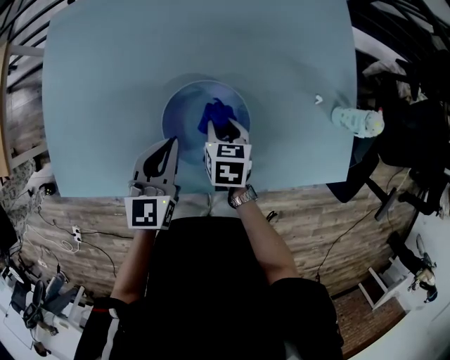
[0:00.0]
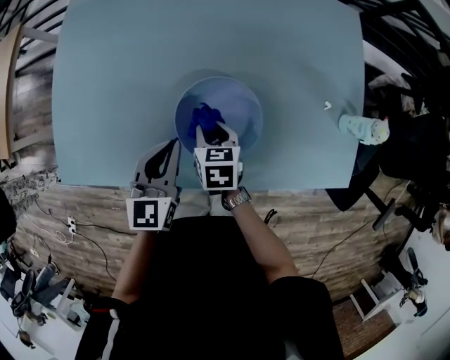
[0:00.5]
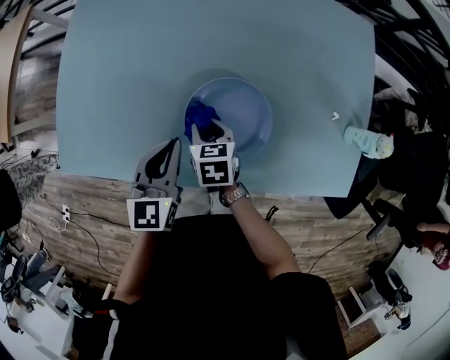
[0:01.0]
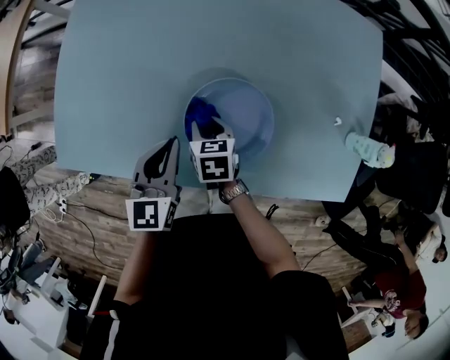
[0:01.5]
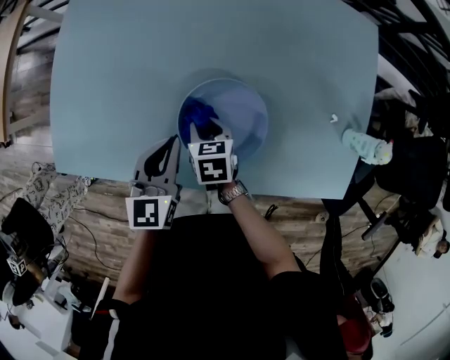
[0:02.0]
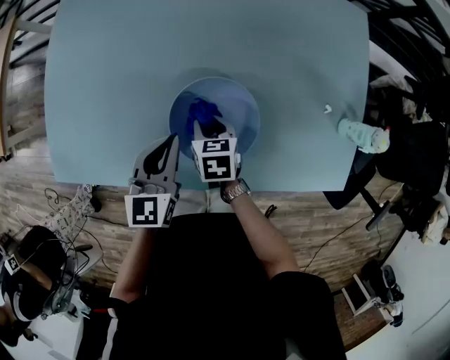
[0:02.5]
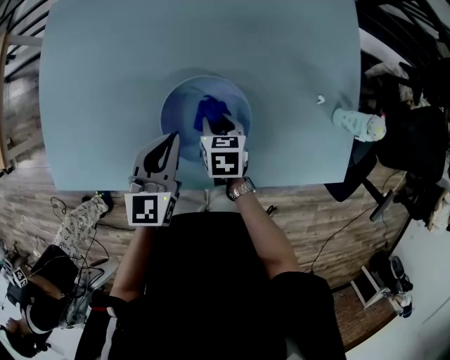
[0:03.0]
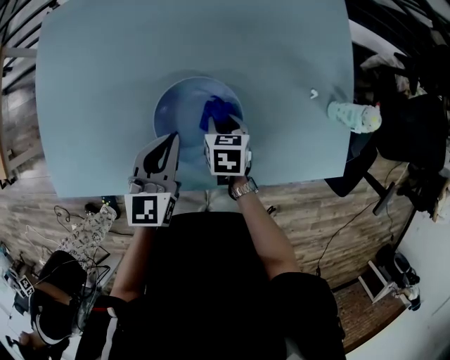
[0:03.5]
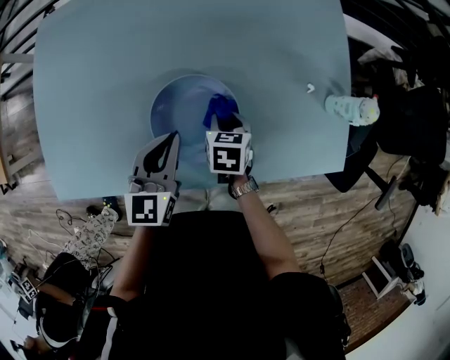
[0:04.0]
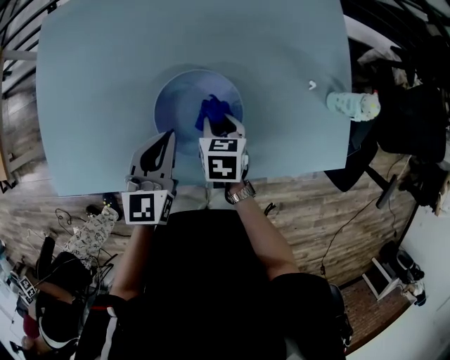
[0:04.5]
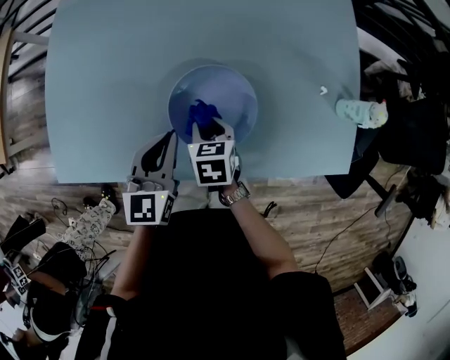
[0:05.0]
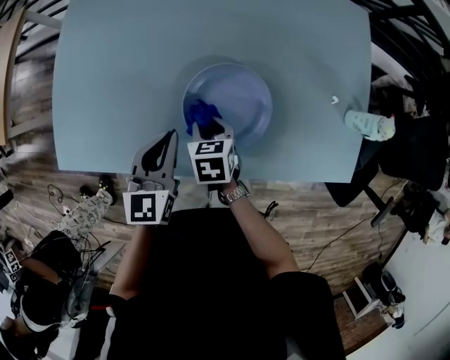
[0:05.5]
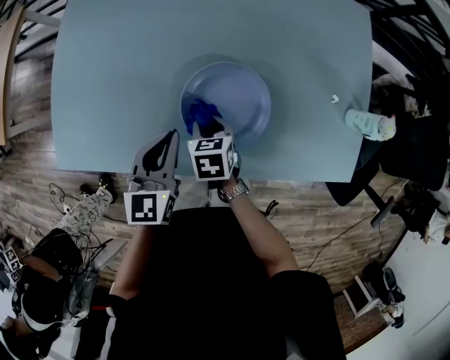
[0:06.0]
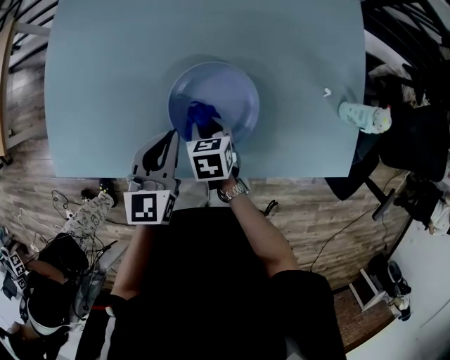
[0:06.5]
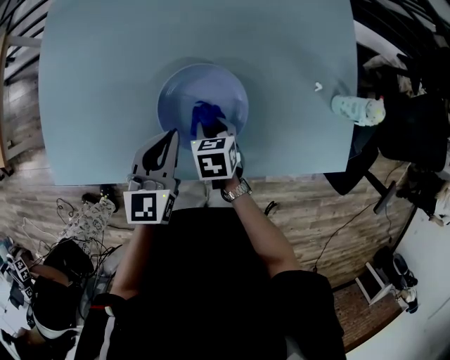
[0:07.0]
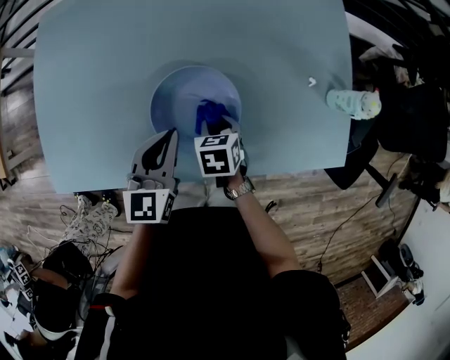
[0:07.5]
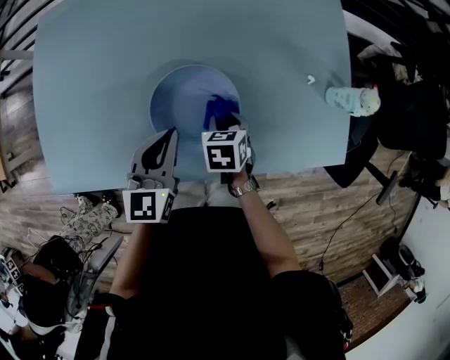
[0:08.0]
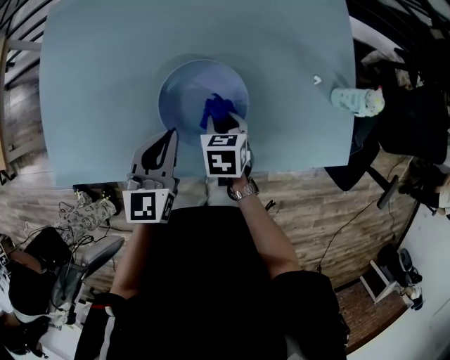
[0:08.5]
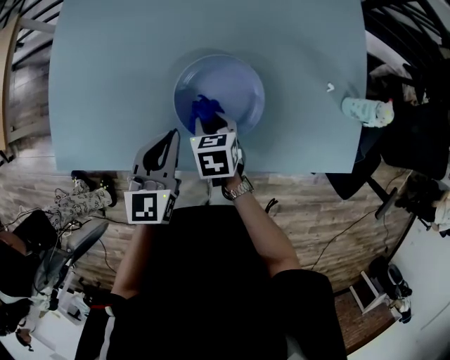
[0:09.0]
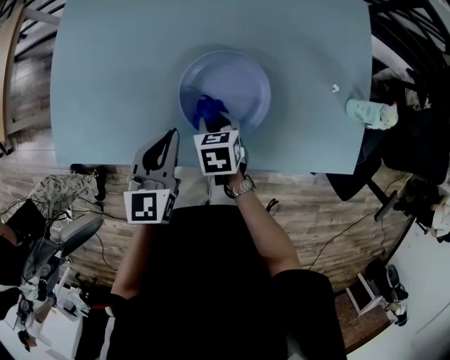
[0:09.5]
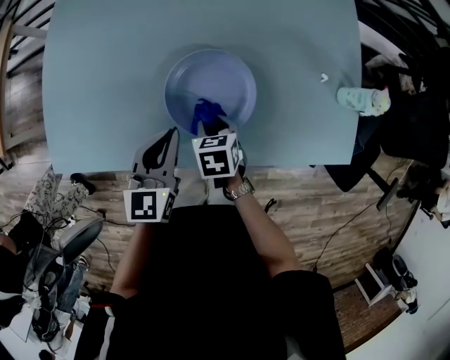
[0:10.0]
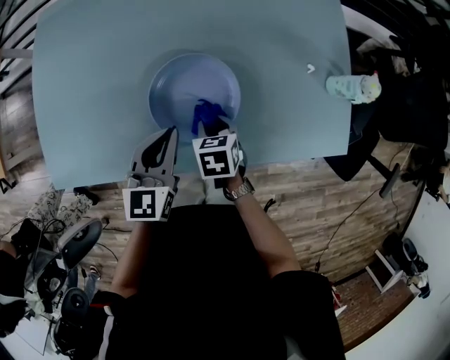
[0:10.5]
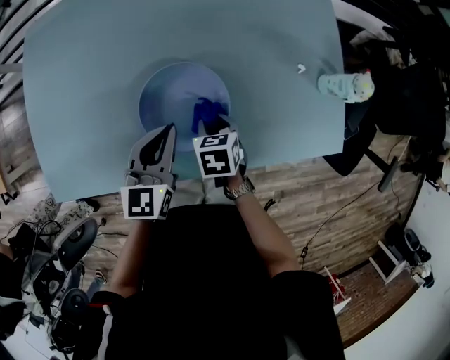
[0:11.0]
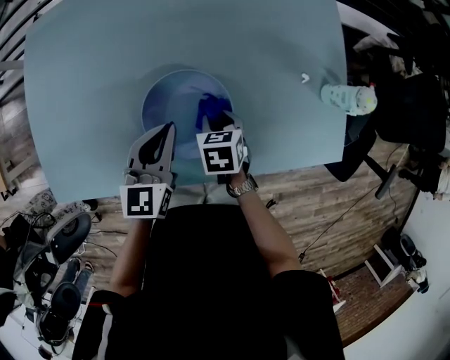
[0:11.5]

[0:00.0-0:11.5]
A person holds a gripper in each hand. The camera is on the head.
0:00.0 to 0:02.0: The left gripper travels to the left by some 5 cm. The right gripper goes some 10 cm to the left.
0:02.0 to 0:04.0: The left gripper moves to the right, about 10 cm, while the right gripper travels to the right by some 15 cm, and swivels some 20 degrees.
0:04.0 to 0:06.0: The left gripper goes approximately 10 cm to the left, while the right gripper shifts roughly 15 cm to the left.
0:06.0 to 0:07.5: Both grippers move to the right, about 10 cm.
0:07.5 to 0:09.5: The left gripper goes approximately 10 cm to the left and backward; the right gripper travels to the left by roughly 10 cm.
0:09.5 to 0:11.5: The right gripper moves to the right, roughly 10 cm; the left gripper is displaced to the right and forward by roughly 15 cm.

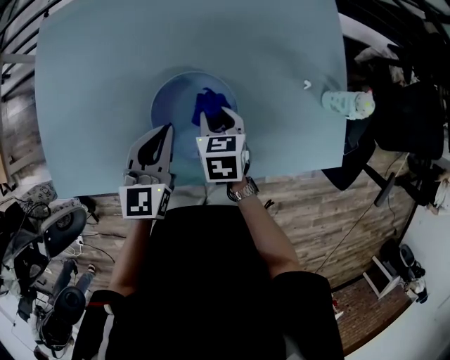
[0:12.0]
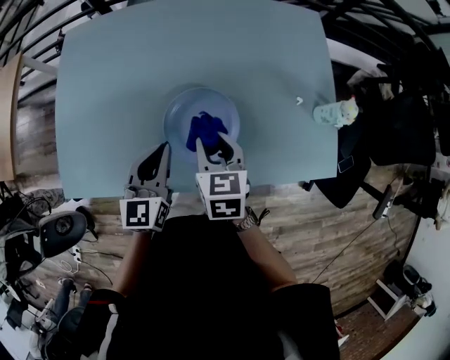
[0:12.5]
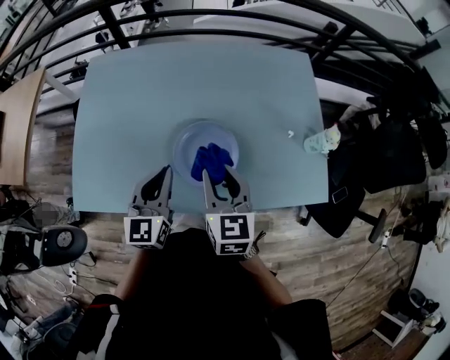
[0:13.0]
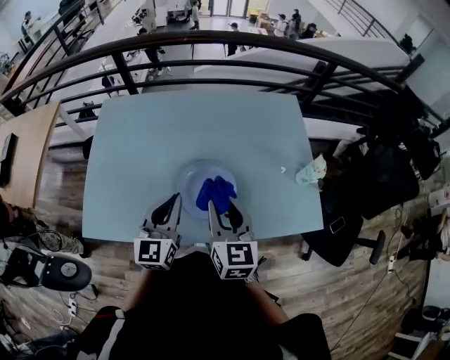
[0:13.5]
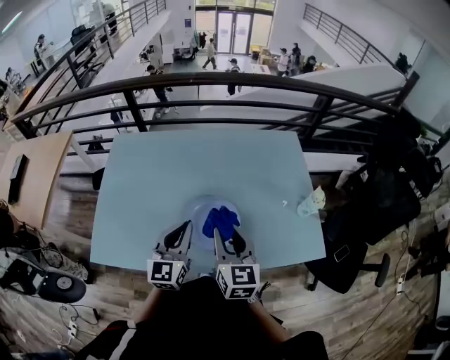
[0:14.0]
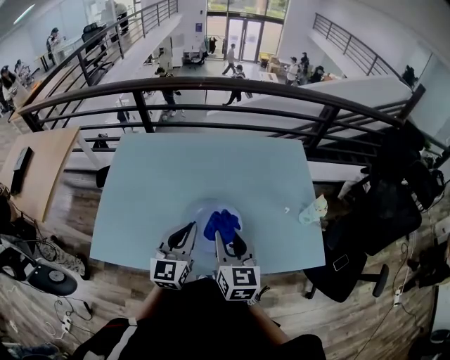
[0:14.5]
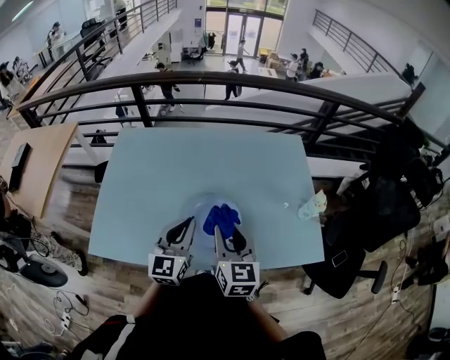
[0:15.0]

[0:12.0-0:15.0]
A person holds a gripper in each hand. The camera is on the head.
0:12.0 to 0:13.5: The right gripper travels upward and backward by about 30 cm, and angles its fingers upward, by some 40 degrees, while the left gripper travels upward and backward by approximately 20 cm.
0:13.5 to 0:15.0: There are only small adjustments of the grippers.

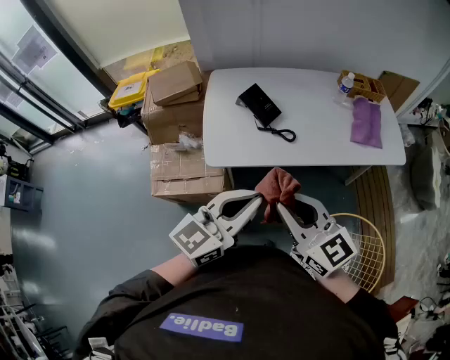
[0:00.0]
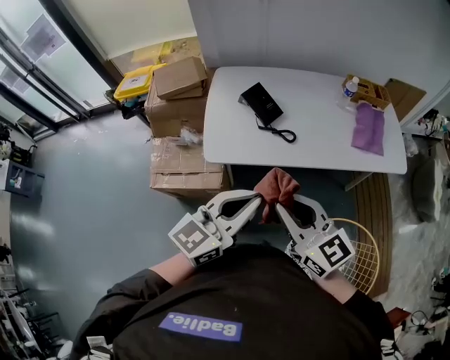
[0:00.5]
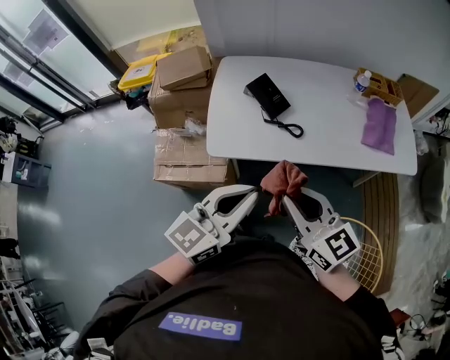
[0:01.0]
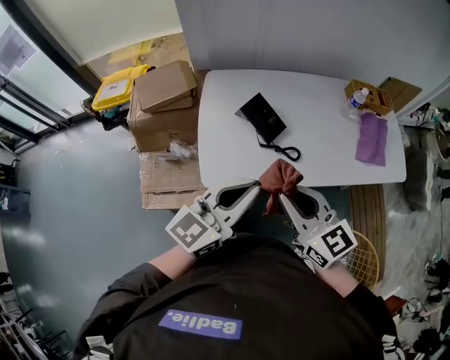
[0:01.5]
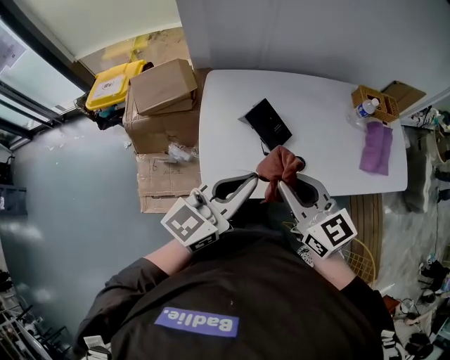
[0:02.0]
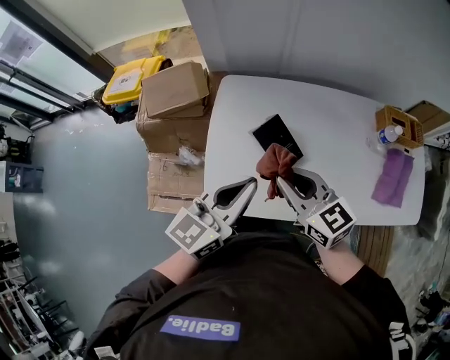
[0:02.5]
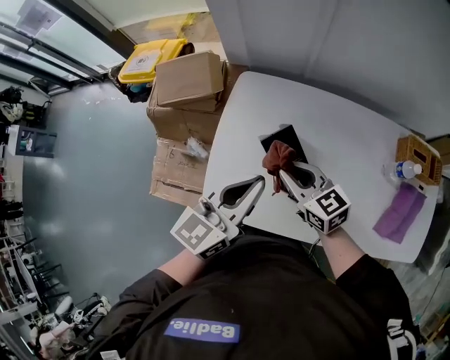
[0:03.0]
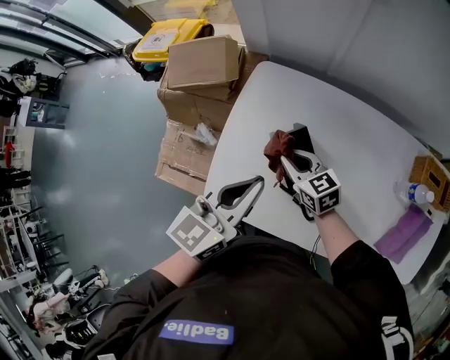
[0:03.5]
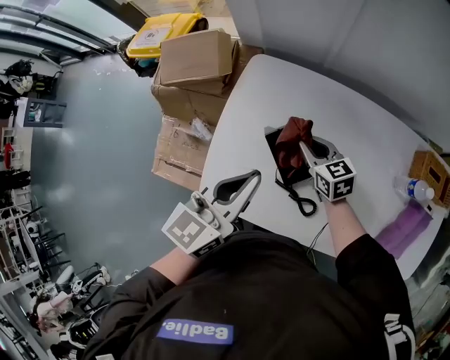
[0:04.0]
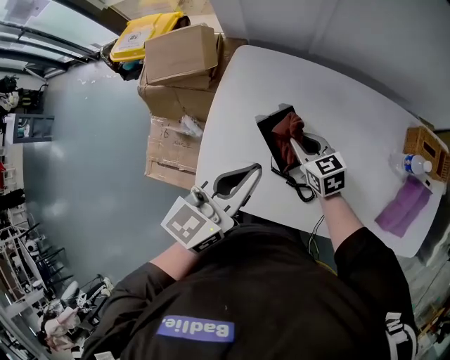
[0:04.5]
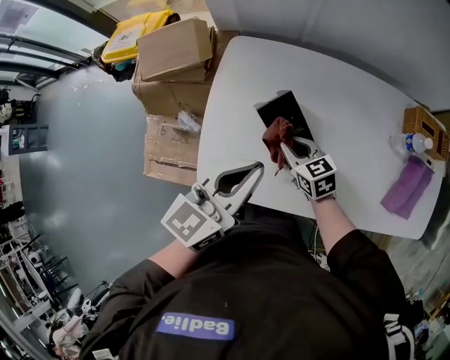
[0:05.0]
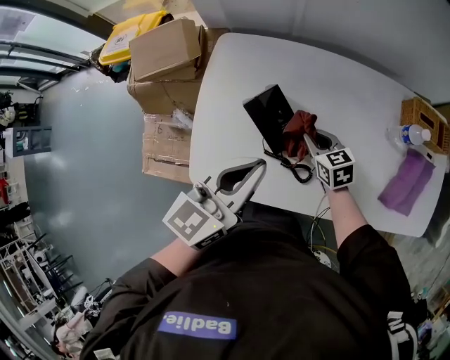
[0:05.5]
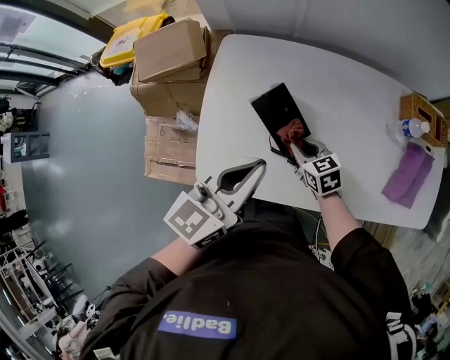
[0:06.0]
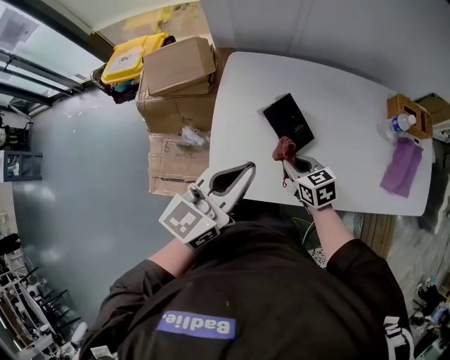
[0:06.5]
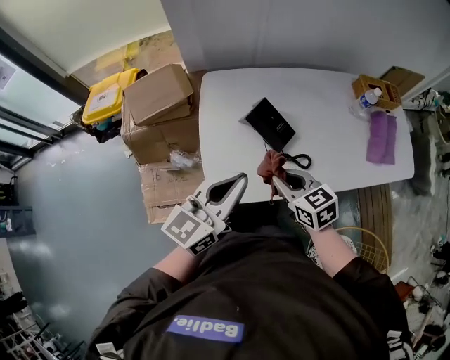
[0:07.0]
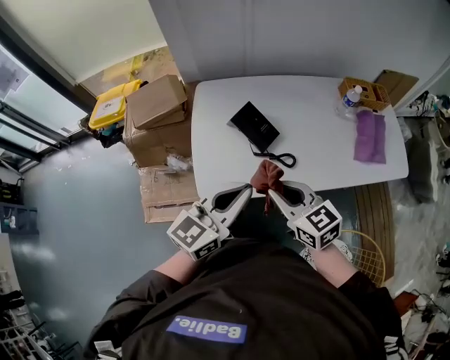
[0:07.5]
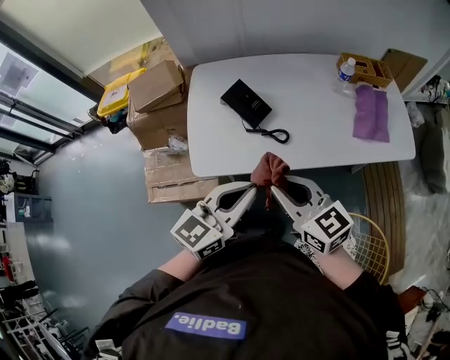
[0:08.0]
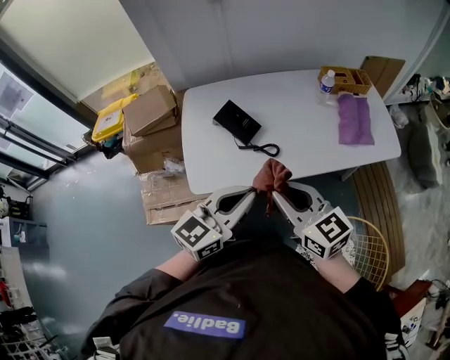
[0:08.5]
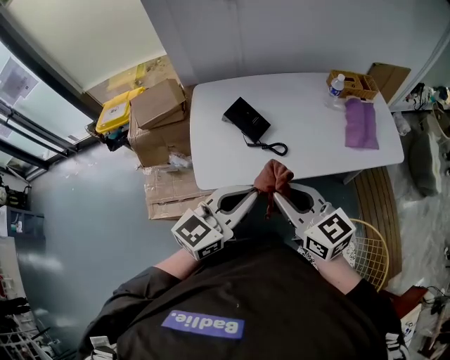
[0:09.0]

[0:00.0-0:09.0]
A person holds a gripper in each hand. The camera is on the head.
0:00.0 to 0:02.0: Both grippers move forward, roughly 25 cm.
0:02.0 to 0:04.5: The right gripper goes some 25 cm downward, and changes its angle by roughly 30 degrees; the left gripper moves roughly 15 cm, and swivels about 30 degrees.
0:04.5 to 0:07.0: The left gripper shifts approximately 15 cm backward and to the left, and changes its angle by roughly 20 degrees. The right gripper heads backward and upward, covering roughly 20 cm.
0:07.0 to 0:09.0: The right gripper moves backward, upward and to the right, roughly 25 cm, and rotates about 20 degrees, while the left gripper moves backward and to the right, some 20 cm.

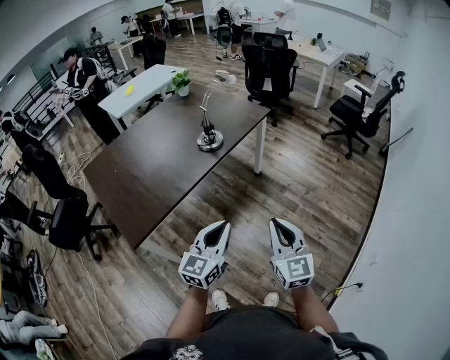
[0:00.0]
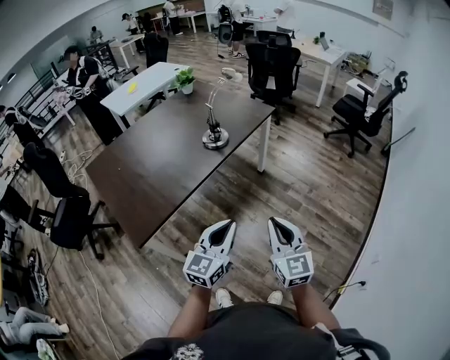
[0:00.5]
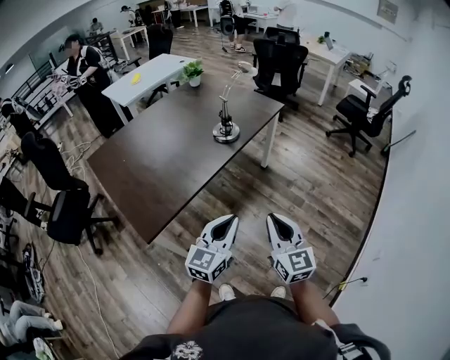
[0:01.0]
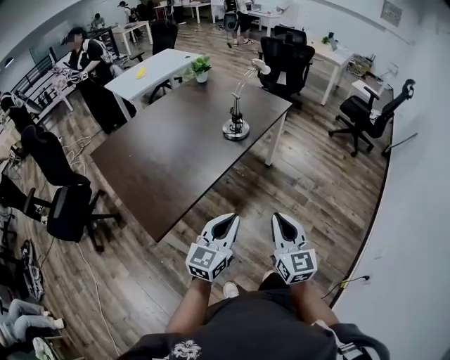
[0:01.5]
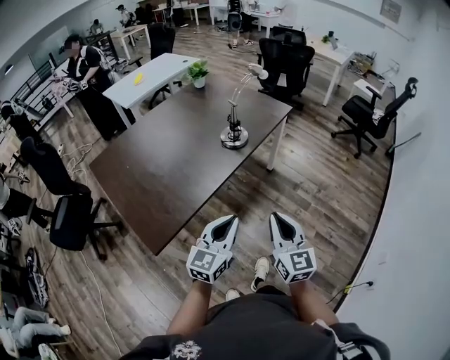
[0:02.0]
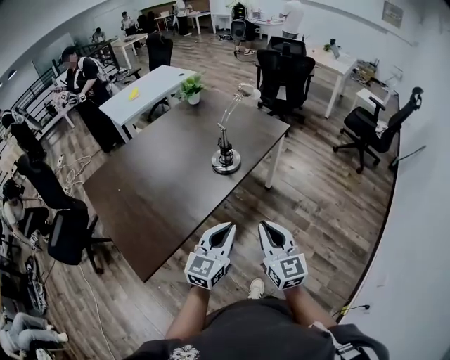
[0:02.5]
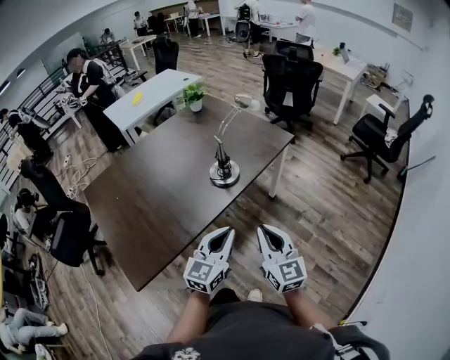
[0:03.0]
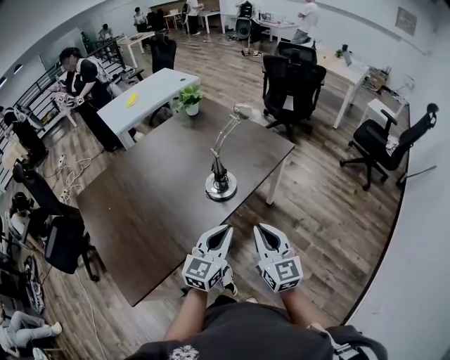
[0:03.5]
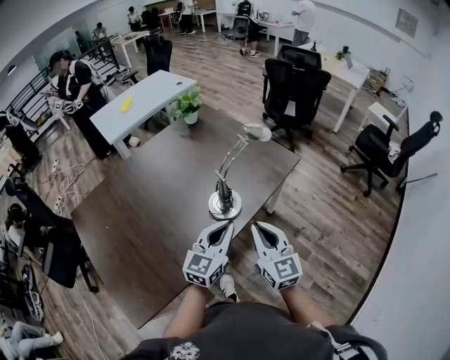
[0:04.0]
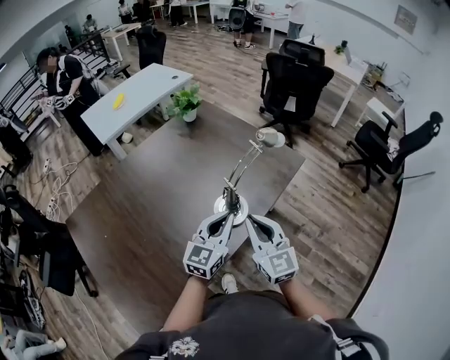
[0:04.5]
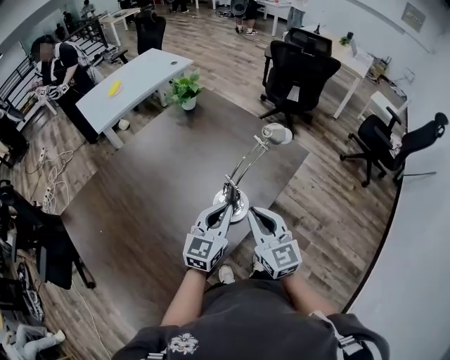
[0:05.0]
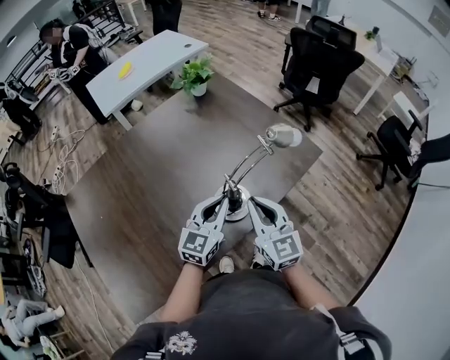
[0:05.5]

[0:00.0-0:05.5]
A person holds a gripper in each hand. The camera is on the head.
0:00.0 to 0:02.0: Both grippers travel together to the left, roughly 15 cm.
0:02.0 to 0:03.5: The two grippers go some 25 cm forward.
0:03.5 to 0:05.5: Both grippers move forward, about 25 cm.
